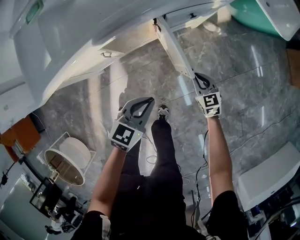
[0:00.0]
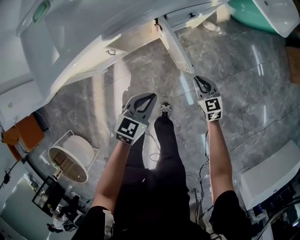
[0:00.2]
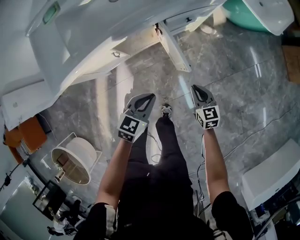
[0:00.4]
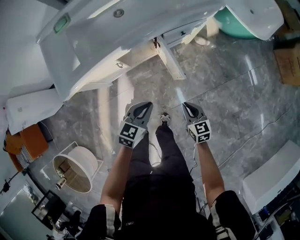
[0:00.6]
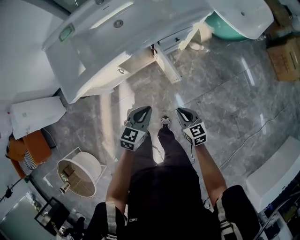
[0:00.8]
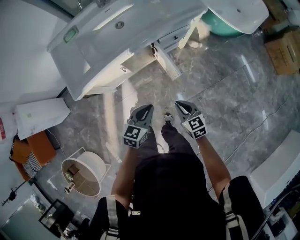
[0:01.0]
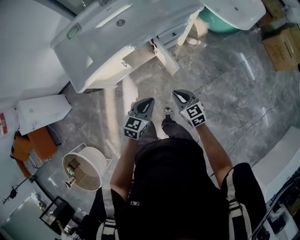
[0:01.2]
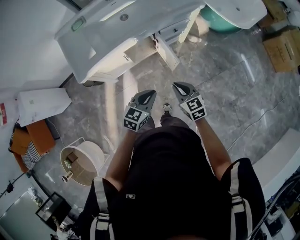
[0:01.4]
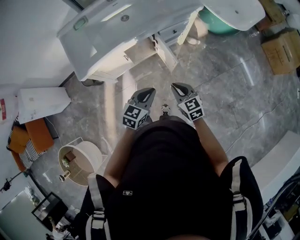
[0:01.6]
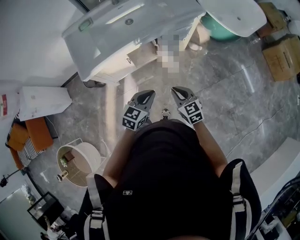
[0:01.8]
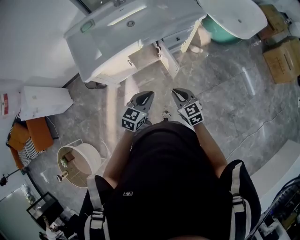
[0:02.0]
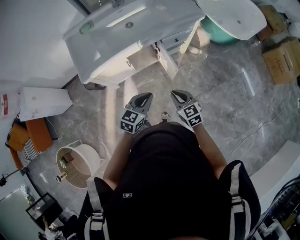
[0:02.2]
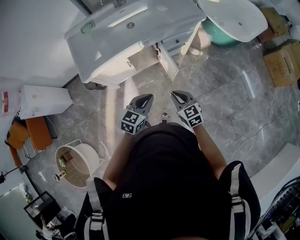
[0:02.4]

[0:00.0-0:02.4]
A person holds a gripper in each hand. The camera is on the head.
0:00.0 to 0:01.2: The left gripper shifts approximately 20 cm upward and backward, while the right gripper travels upward and backward by about 30 cm.
0:01.2 to 0:02.4: The right gripper changes place by some 5 cm; the left gripper changes place by roughly 5 cm.

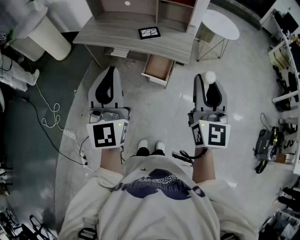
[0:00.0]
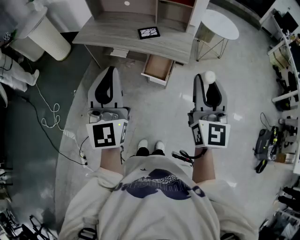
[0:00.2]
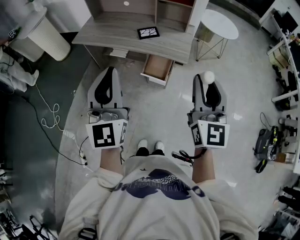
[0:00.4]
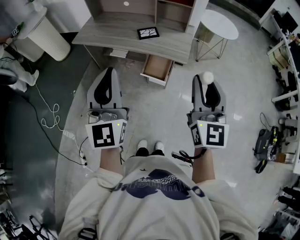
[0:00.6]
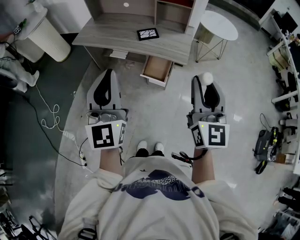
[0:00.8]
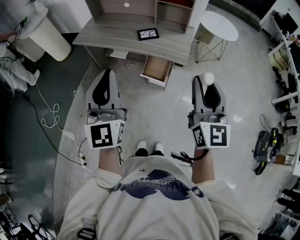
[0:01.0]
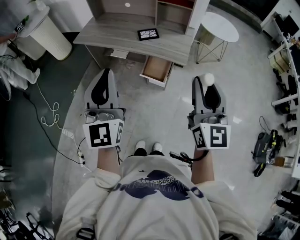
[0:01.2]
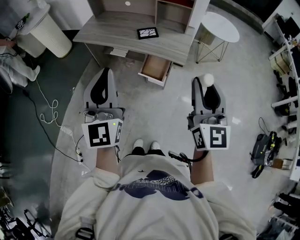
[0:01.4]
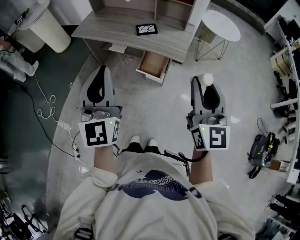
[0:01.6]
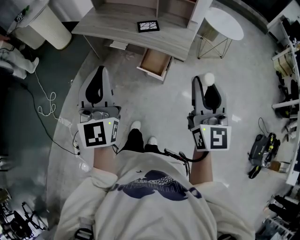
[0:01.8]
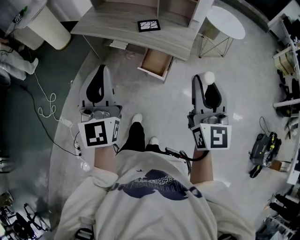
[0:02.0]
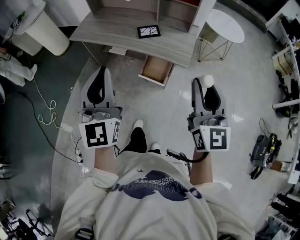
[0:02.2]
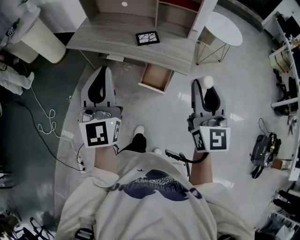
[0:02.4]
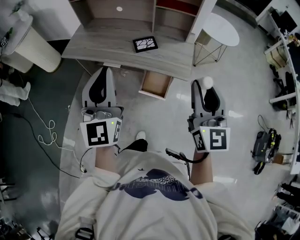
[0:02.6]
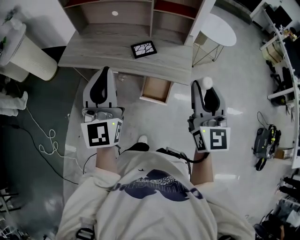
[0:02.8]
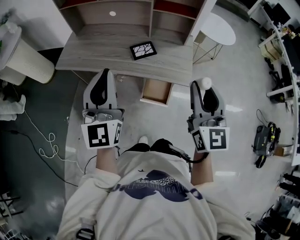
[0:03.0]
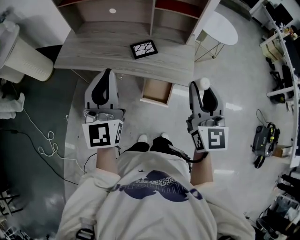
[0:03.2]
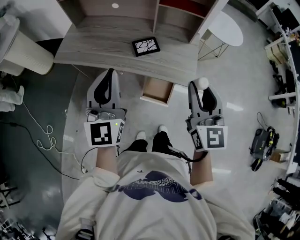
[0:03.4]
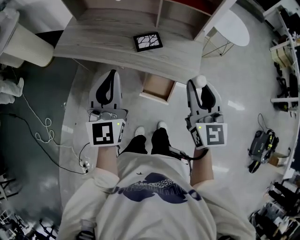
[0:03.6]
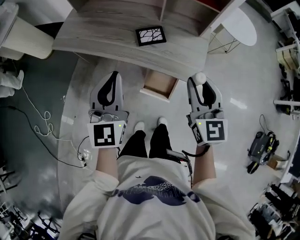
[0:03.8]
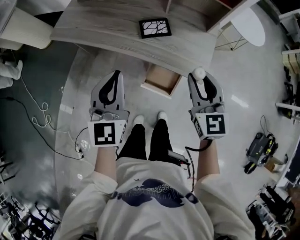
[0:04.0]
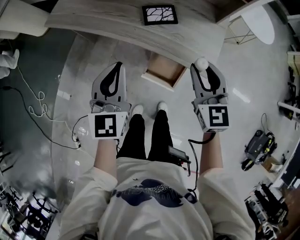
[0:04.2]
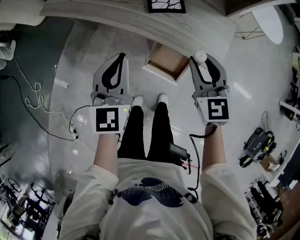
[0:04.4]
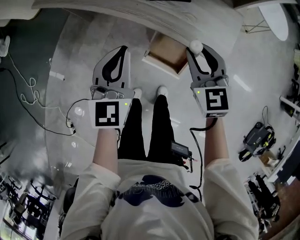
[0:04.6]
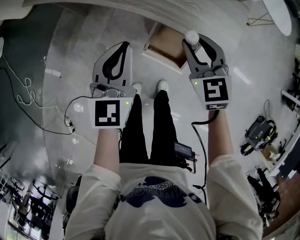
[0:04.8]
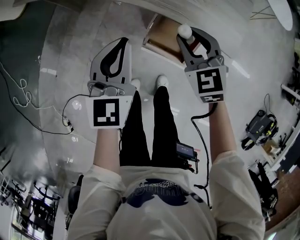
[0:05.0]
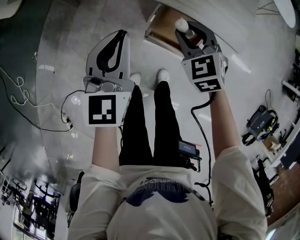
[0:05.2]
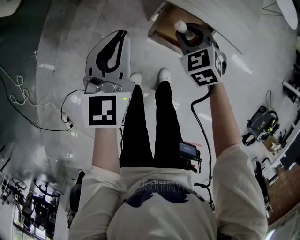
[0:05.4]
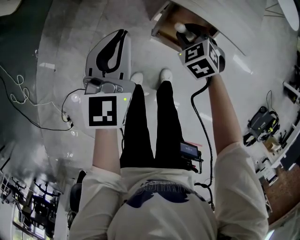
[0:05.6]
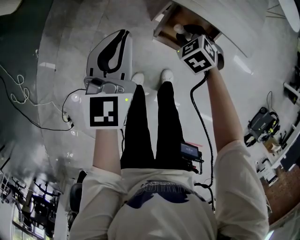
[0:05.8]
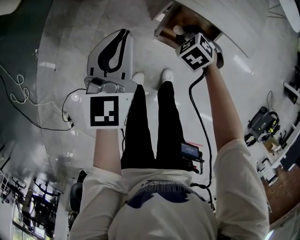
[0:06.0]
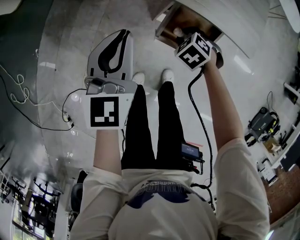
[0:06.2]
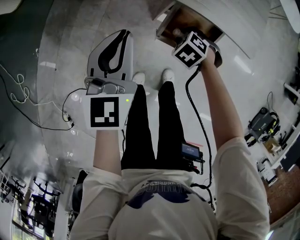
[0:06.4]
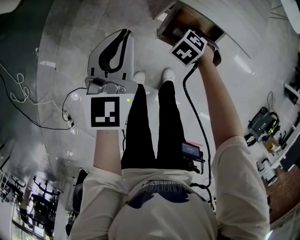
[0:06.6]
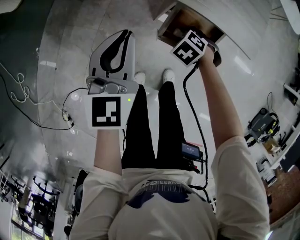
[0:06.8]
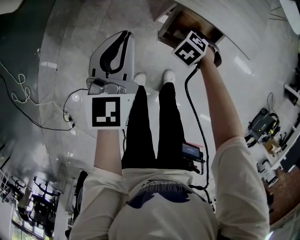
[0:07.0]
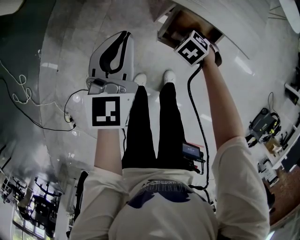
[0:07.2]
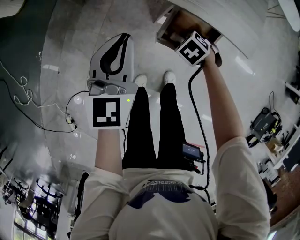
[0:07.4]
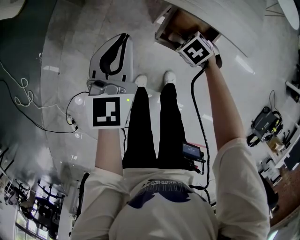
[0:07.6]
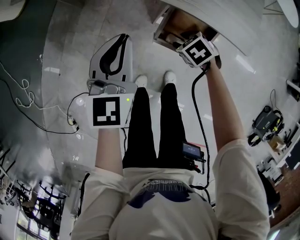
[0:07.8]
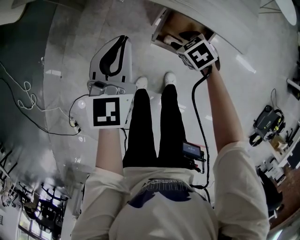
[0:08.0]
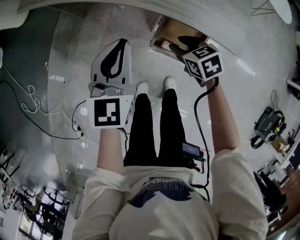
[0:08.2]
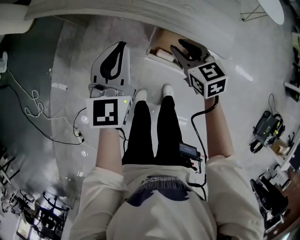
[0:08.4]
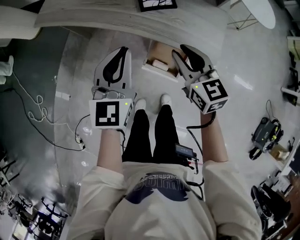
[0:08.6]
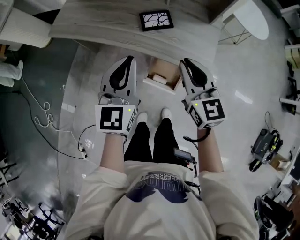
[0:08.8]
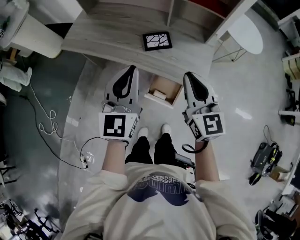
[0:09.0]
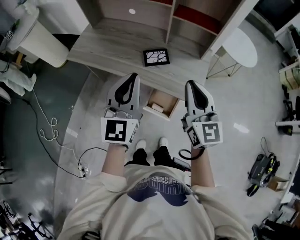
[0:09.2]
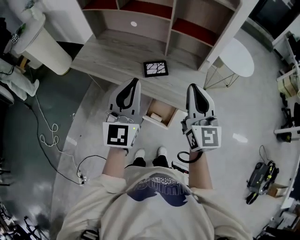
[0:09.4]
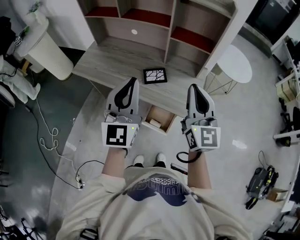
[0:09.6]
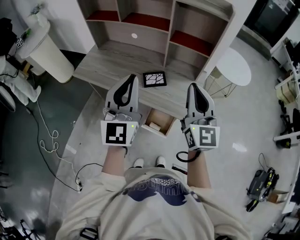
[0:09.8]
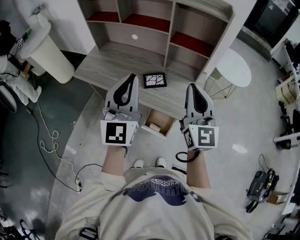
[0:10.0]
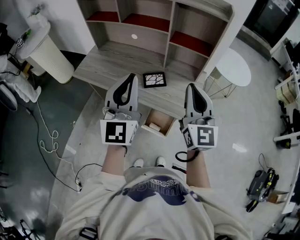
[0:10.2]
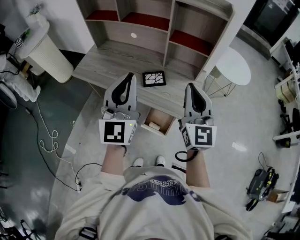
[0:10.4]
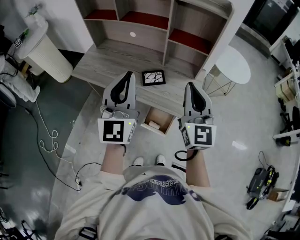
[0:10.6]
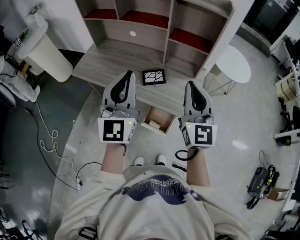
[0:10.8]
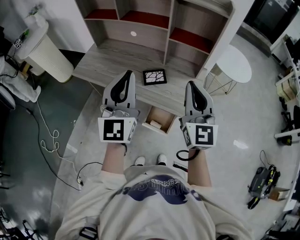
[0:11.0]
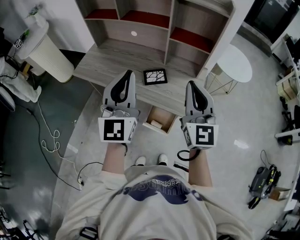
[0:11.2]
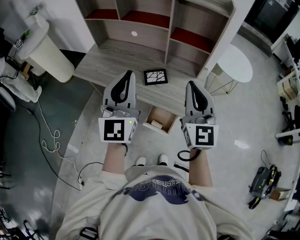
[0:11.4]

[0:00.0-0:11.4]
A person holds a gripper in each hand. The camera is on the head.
0:00.0 to 0:01.4: There are only small adjustments of the grippers.
0:01.4 to 0:02.8: Both grippers move forward, approximately 25 cm.
0:02.8 to 0:04.2: Both grippers move downward and forward, some 25 cm. The left gripper rotates some 30 degrees. The right gripper changes its angle by some 30 degrees.
0:04.2 to 0:05.6: The left gripper is displaced downward by some 20 cm; the right gripper shifts roughly 35 cm downward, and angles its fingers downward, by approximately 40 degrees.
0:05.6 to 0:07.2: The right gripper heads downward, covering approximately 5 cm, and swivels roughly 20 degrees.
0:07.2 to 0:08.6: The left gripper goes about 15 cm upward. Meanwhile the right gripper travels upward by about 35 cm, and tips its fingers upward by approximately 60 degrees.
0:08.6 to 0:10.0: The two grippers go approximately 30 cm upward. The left gripper changes its angle by roughly 30 degrees; the right gripper tilts its fingers approximately 30 degrees upward, and closes its fingers.
0:10.0 to 0:11.4: There are only small adjustments of the grippers.

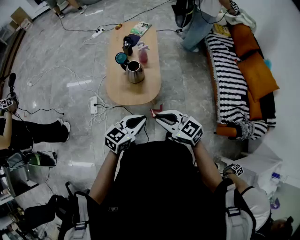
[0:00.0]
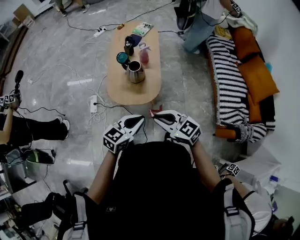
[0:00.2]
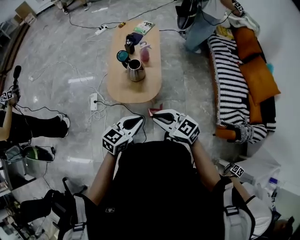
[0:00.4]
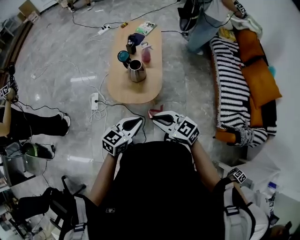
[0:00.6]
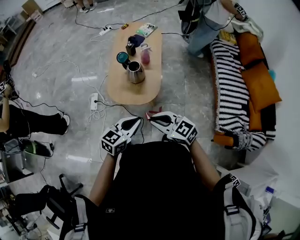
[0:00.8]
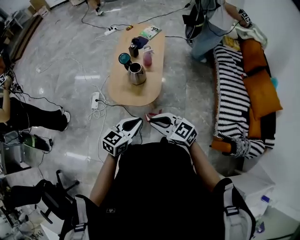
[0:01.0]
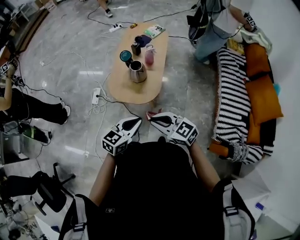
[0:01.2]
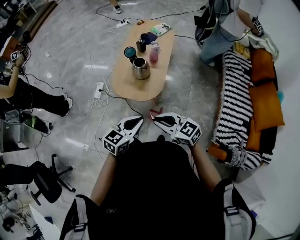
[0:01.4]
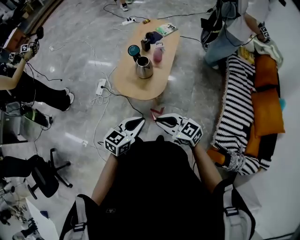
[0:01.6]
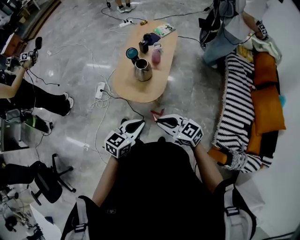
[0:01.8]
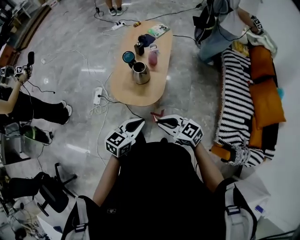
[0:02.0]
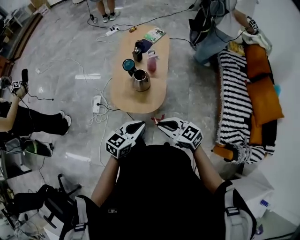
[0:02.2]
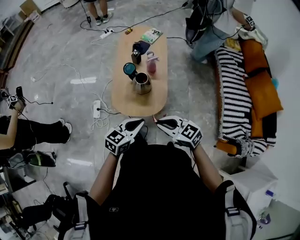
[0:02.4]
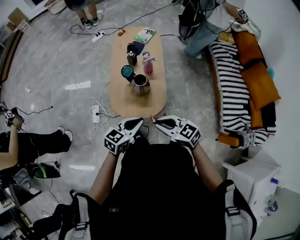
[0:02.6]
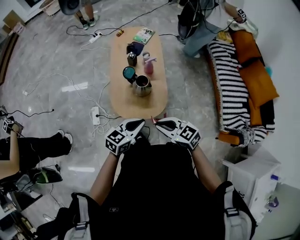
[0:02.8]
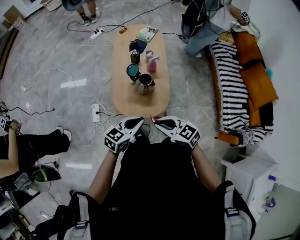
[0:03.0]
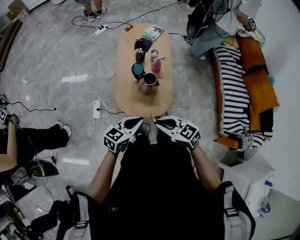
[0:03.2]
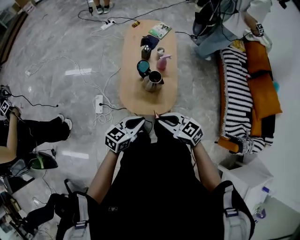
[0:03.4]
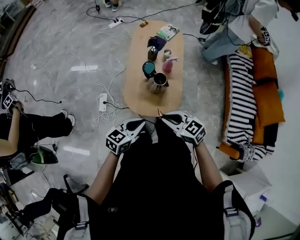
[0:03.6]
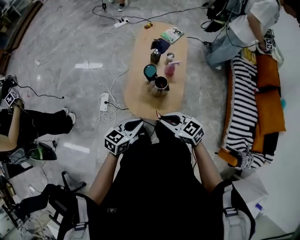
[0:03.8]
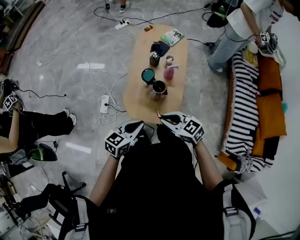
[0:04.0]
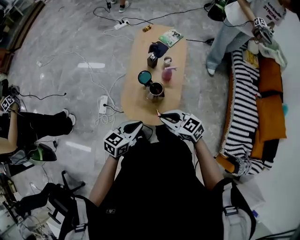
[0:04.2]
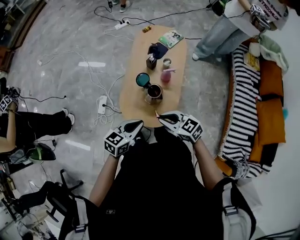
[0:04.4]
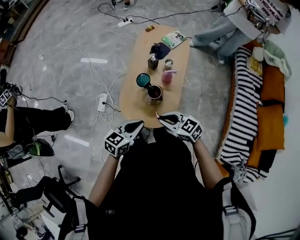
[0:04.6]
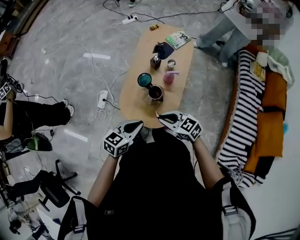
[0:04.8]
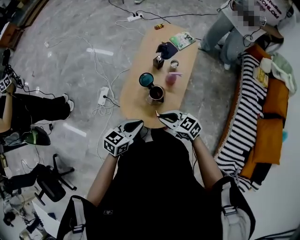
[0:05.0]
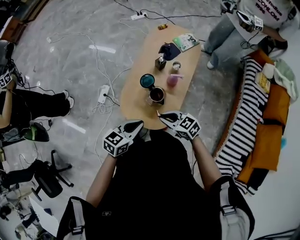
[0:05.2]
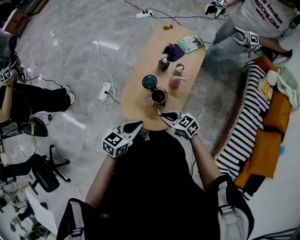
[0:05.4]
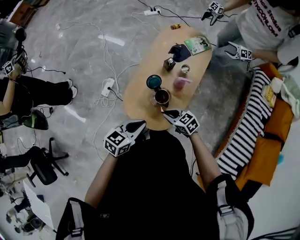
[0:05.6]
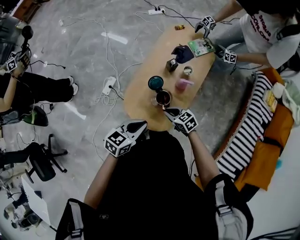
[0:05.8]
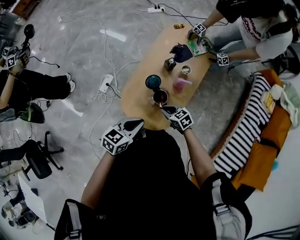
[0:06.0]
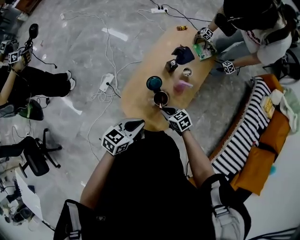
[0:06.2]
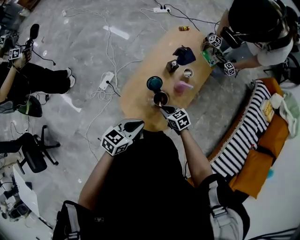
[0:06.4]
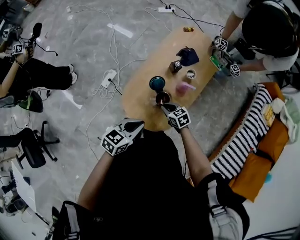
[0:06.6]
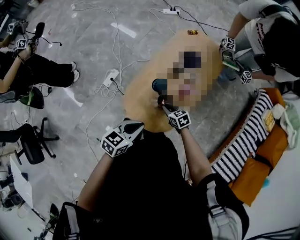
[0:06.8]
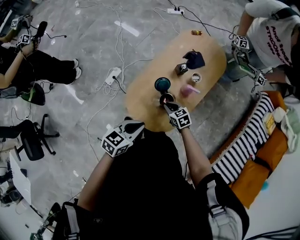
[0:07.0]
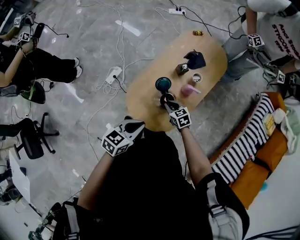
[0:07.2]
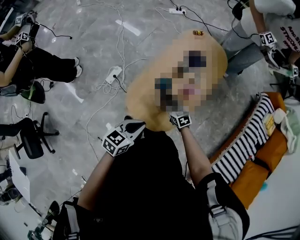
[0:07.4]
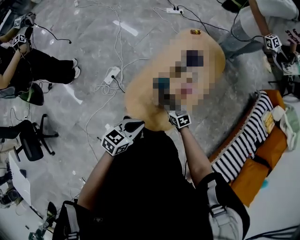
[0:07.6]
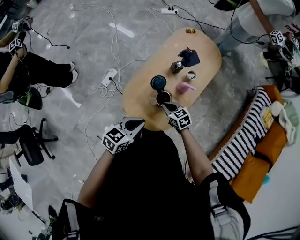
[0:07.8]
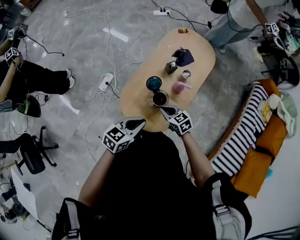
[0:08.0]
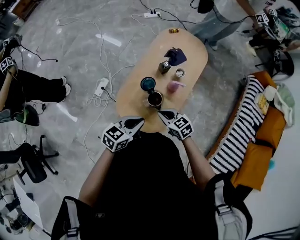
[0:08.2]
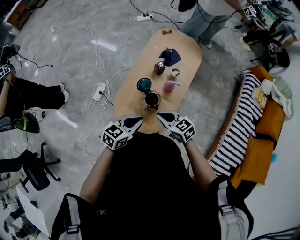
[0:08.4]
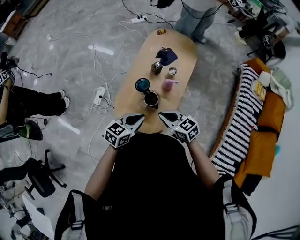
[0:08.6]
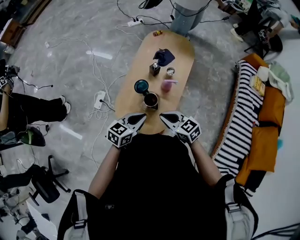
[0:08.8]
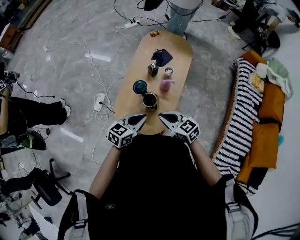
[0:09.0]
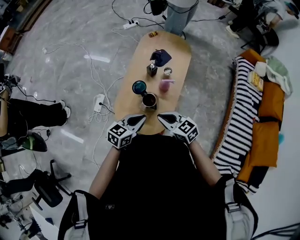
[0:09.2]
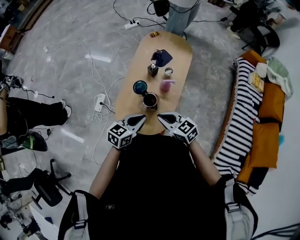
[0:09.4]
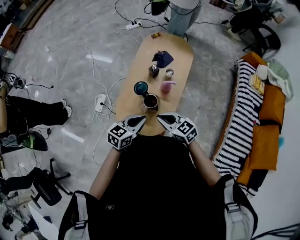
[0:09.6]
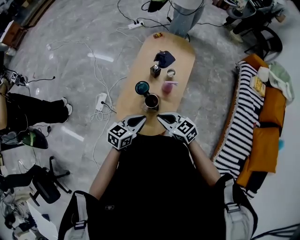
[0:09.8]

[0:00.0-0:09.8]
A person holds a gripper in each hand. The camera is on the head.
0:00.0 to 0:01.4: Both grippers move to the right, roughly 10 cm.
0:01.4 to 0:02.8: The two grippers go some 20 cm forward and to the left. The right gripper changes its angle by roughly 20 degrees. Meanwhile the left gripper rotates approximately 20 degrees.
0:02.8 to 0:04.2: The right gripper moves forward, roughly 10 cm. The left gripper is displaced forward by some 5 cm.
0:04.2 to 0:05.6: The right gripper travels downward and forward by approximately 15 cm; the left gripper travels to the right and forward by about 10 cm.
0:05.6 to 0:07.0: The right gripper shifts approximately 10 cm downward and forward.
0:07.0 to 0:08.4: The right gripper shifts about 15 cm upward and backward.
0:08.4 to 0:09.8: There are only small adjustments of the grippers.
